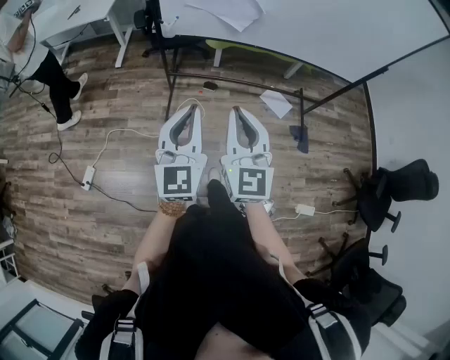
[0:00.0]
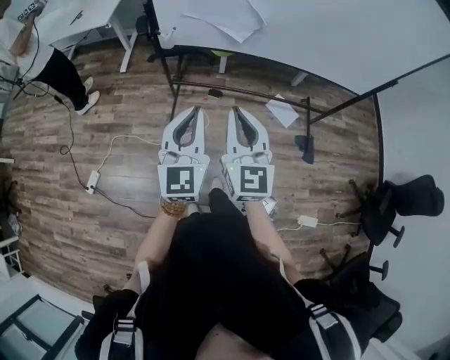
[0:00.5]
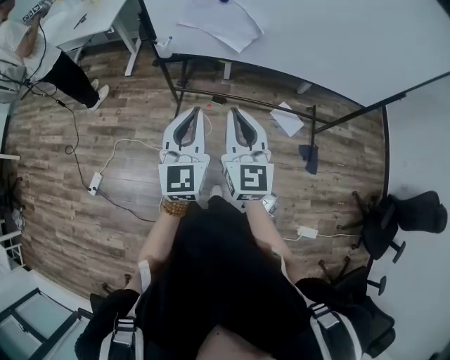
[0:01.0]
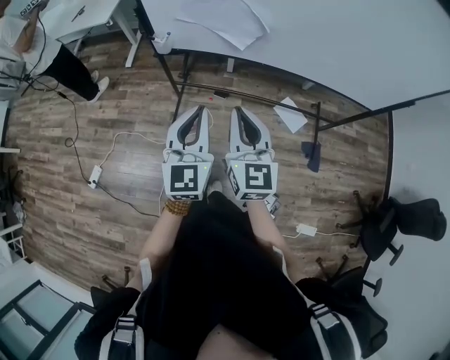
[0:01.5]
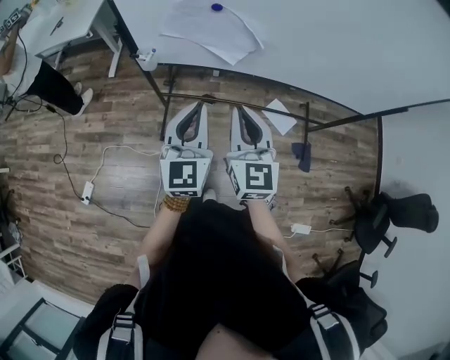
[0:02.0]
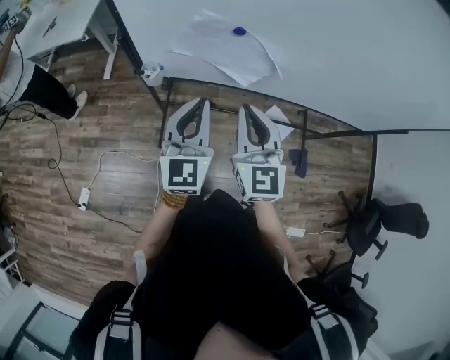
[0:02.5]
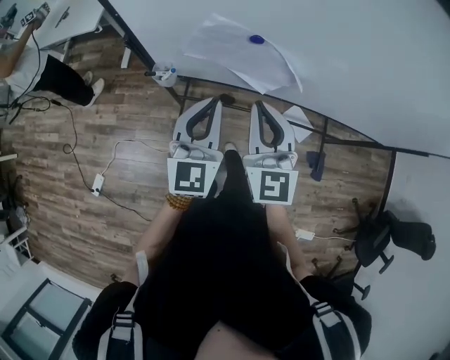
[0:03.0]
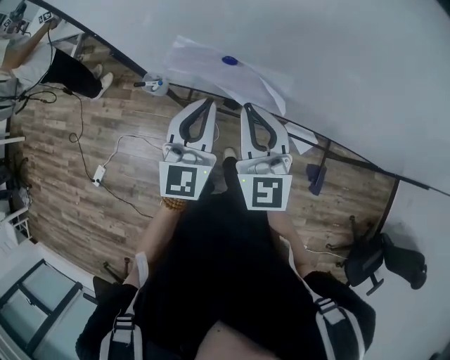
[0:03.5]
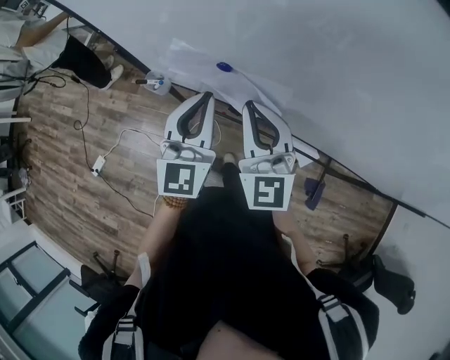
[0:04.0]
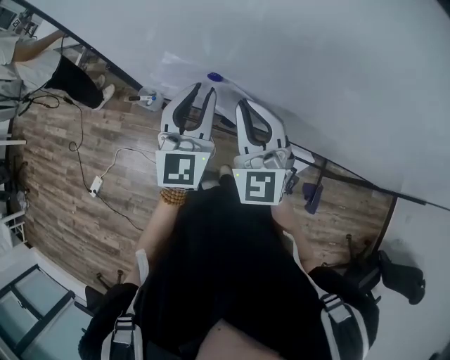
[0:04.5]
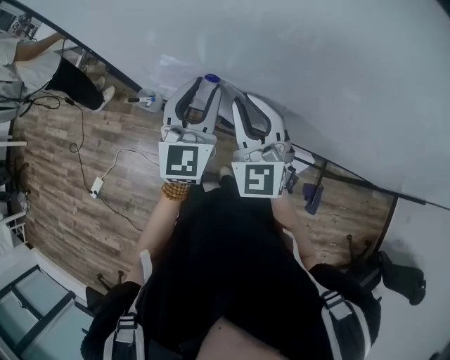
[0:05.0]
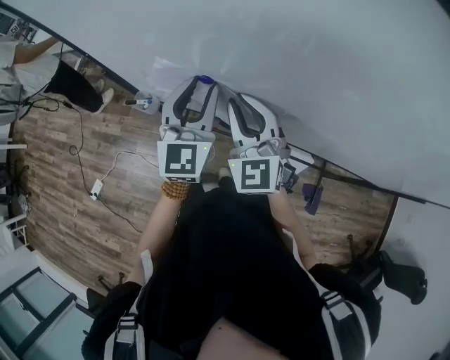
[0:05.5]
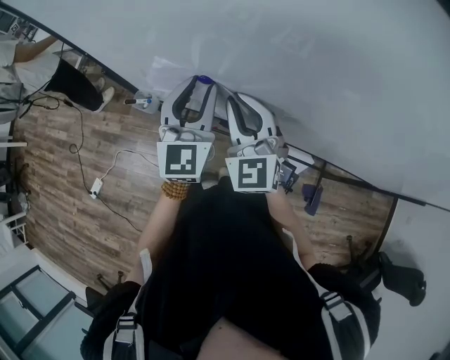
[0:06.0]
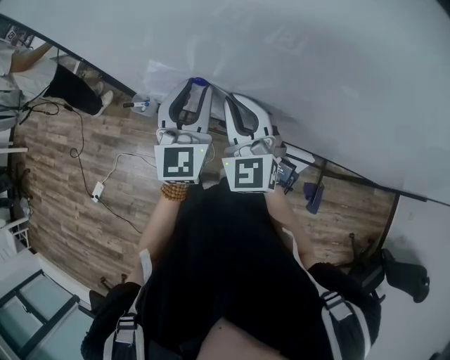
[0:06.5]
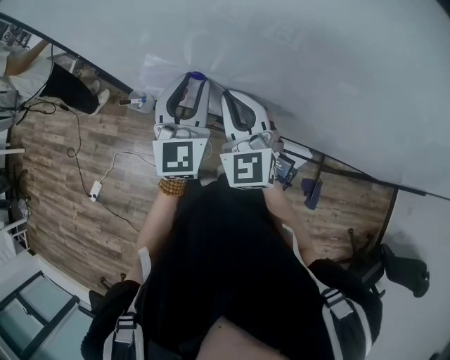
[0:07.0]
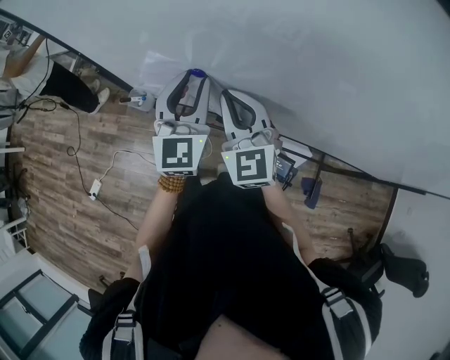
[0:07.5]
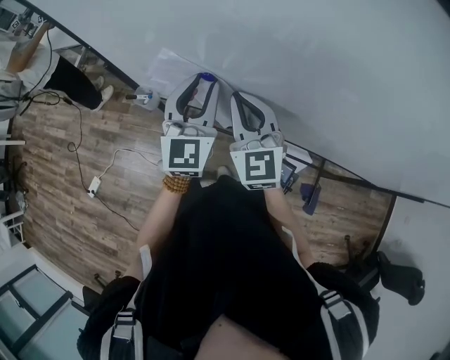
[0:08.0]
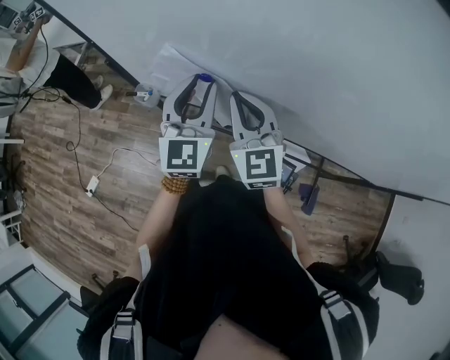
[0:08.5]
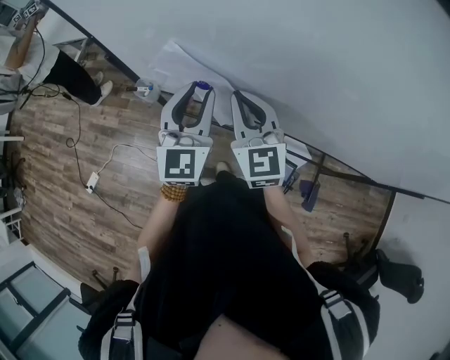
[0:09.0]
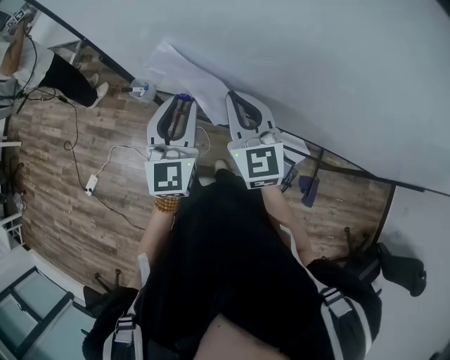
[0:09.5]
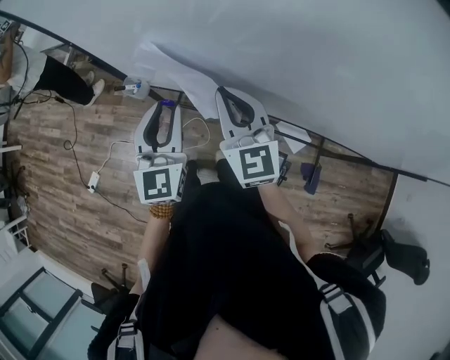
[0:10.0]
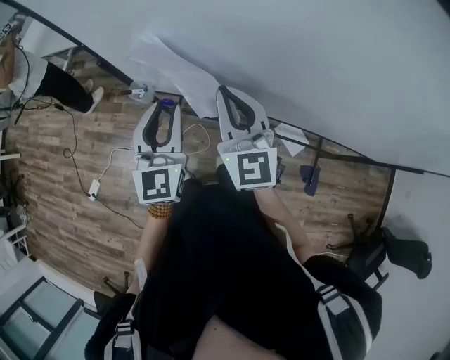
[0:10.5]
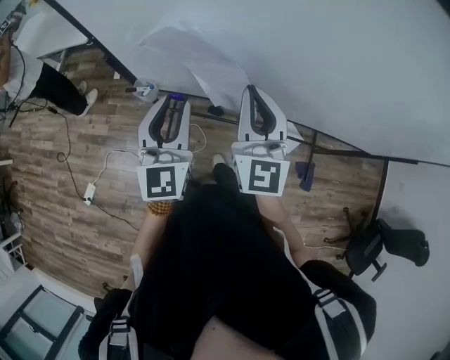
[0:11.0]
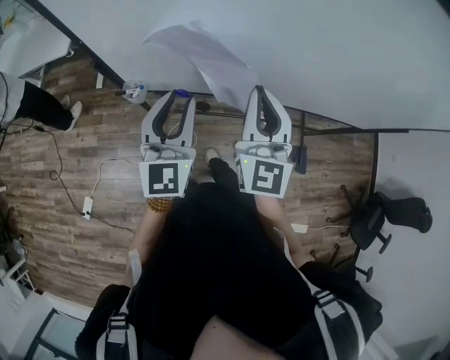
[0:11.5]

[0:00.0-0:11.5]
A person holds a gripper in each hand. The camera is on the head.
0:00.0 to 0:02.0: Both grippers travel together forward, roughly 25 cm.
0:02.0 to 0:04.0: The grippers both shift forward by approximately 20 cm. The right gripper changes its angle by about 30 degrees.
0:04.0 to 0:06.0: The left gripper moves forward, approximately 5 cm, and opens up.
0:06.0 to 0:07.5: The grippers move only a little.
0:07.5 to 0:09.5: The left gripper moves backward and to the left, roughly 5 cm.
0:09.5 to 0:11.5: The left gripper moves some 5 cm. The right gripper moves upward and backward, roughly 10 cm, and swivels some 30 degrees.

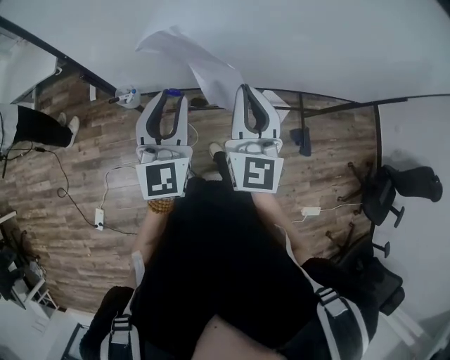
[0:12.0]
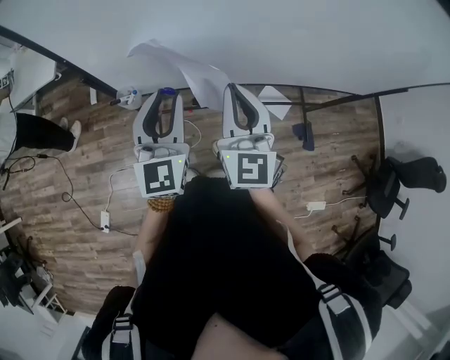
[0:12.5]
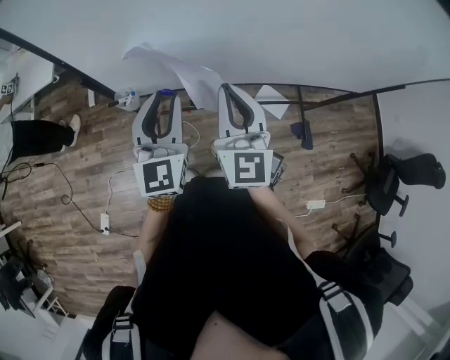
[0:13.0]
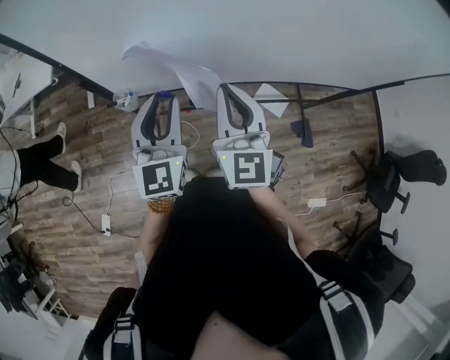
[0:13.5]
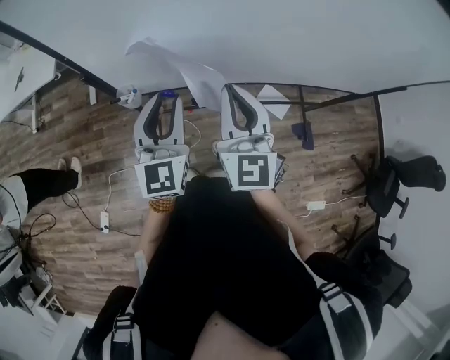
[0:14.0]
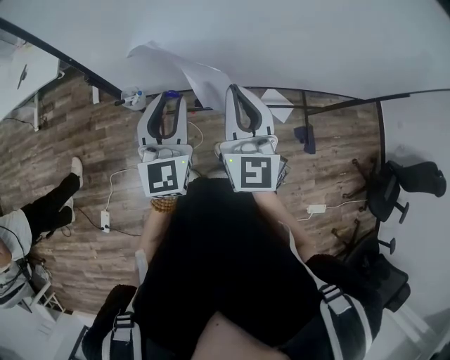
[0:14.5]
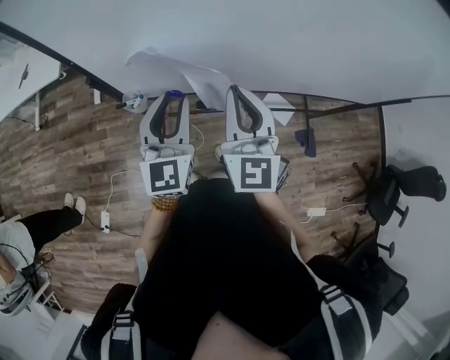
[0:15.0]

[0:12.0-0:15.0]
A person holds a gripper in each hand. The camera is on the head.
0:12.0 to 0:15.0: The grippers stay close to where they were, moving slightly.

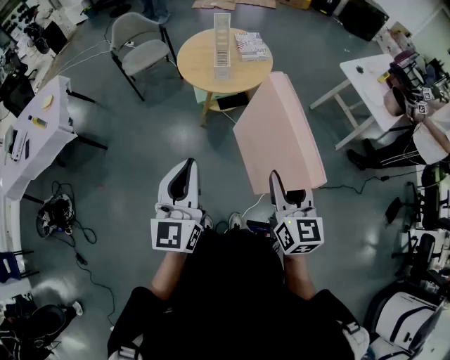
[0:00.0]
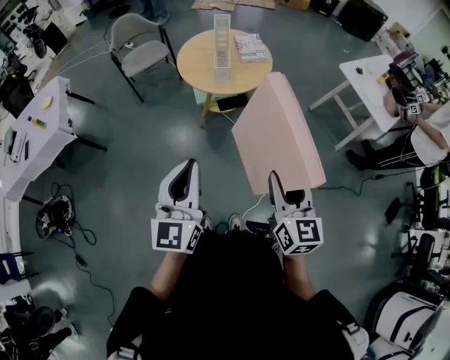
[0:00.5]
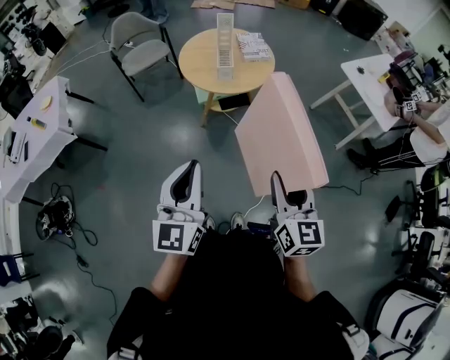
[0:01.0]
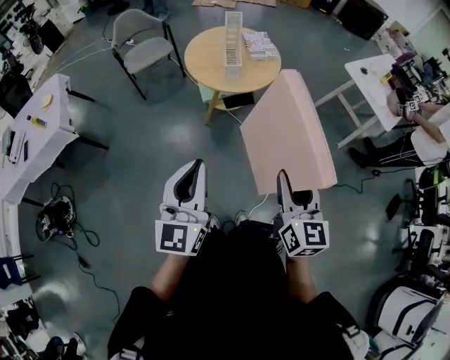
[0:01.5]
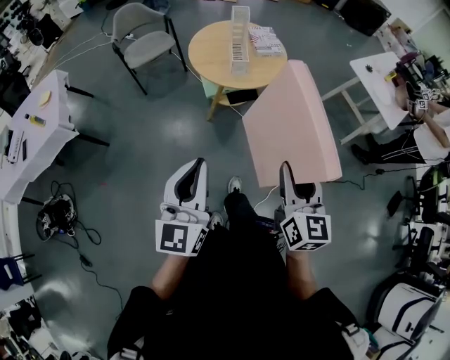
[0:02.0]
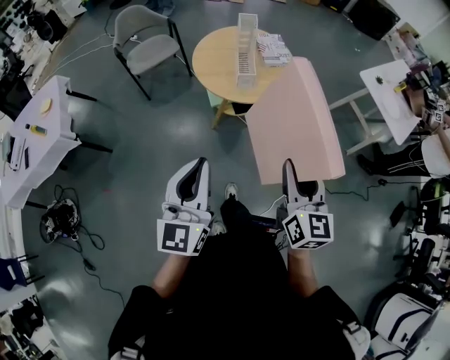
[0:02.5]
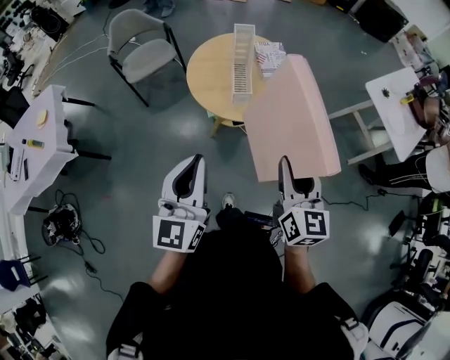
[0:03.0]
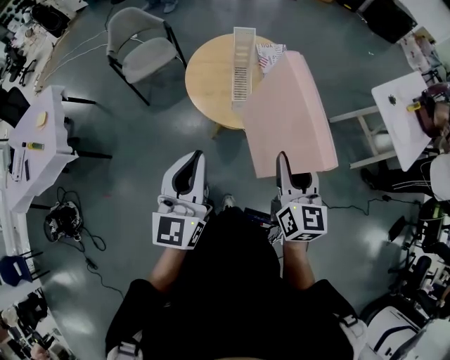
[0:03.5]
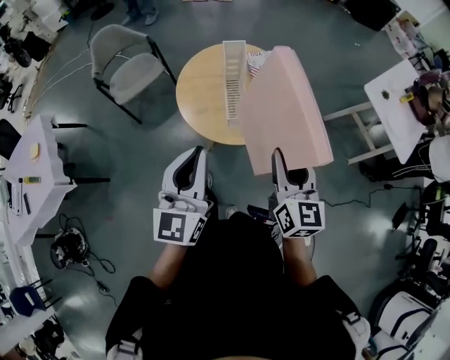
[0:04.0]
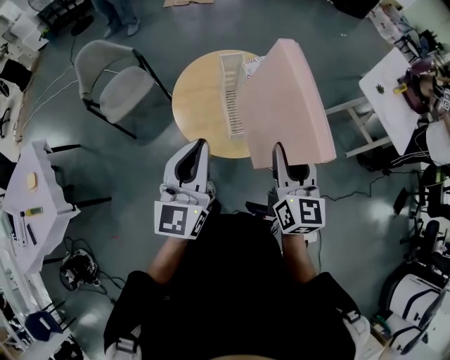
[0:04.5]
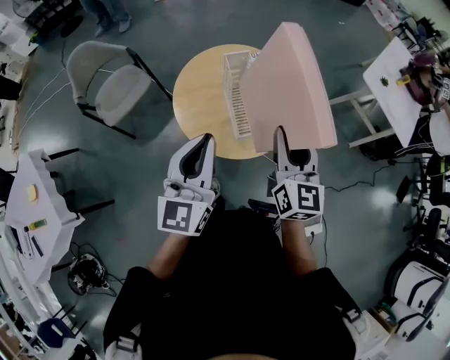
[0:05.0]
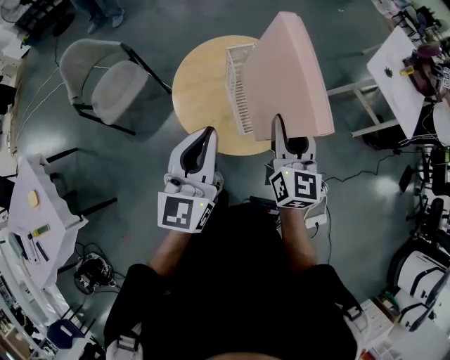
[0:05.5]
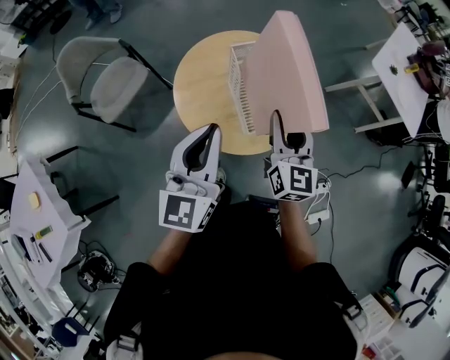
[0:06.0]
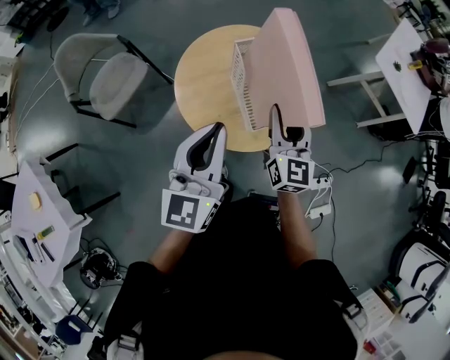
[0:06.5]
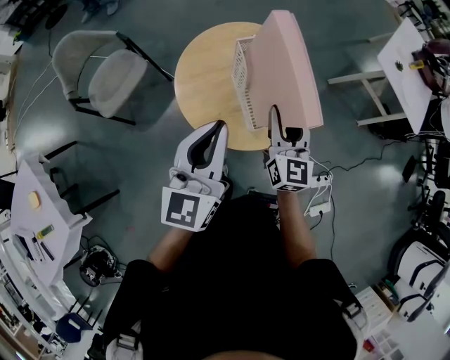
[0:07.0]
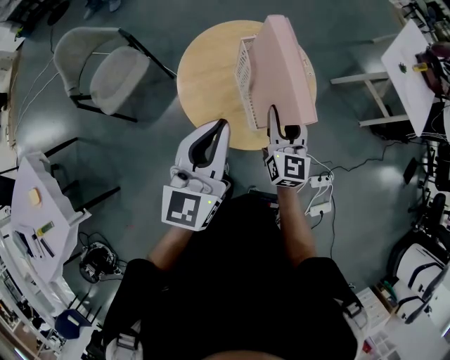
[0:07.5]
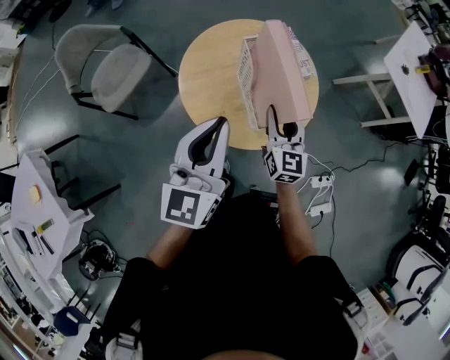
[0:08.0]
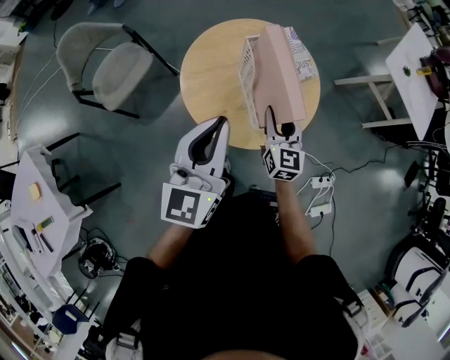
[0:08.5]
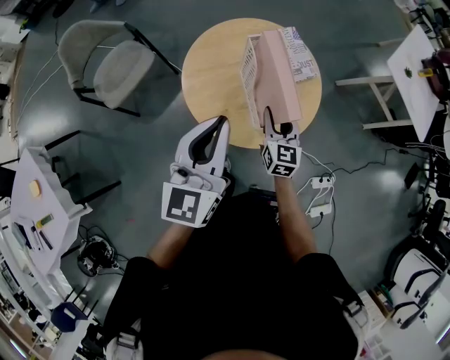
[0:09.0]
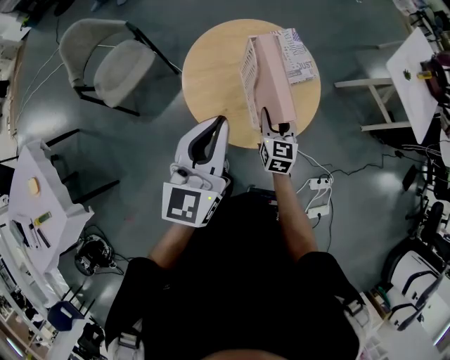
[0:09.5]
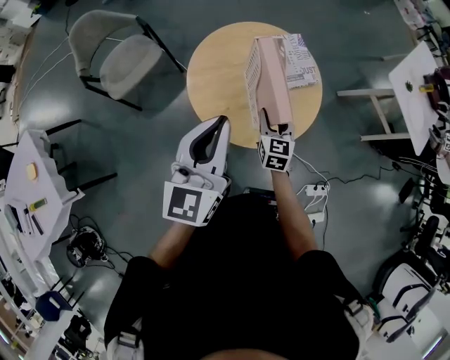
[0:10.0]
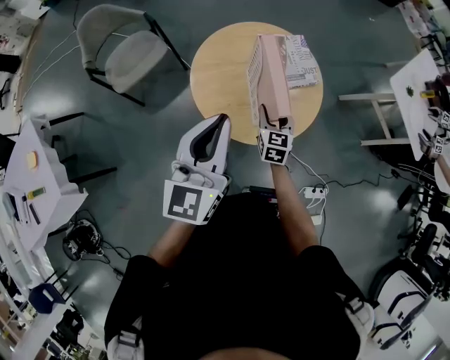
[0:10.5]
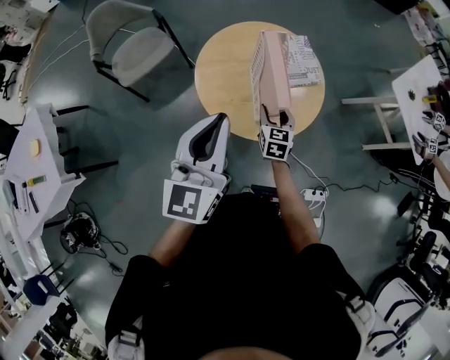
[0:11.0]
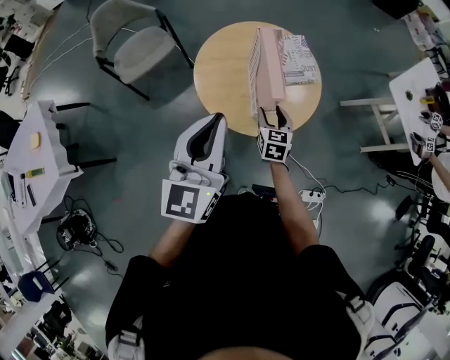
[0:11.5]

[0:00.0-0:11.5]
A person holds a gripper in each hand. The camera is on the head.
0:00.0 to 0:02.0: Both grippers travel together to the left, about 10 cm.
0:02.0 to 0:04.0: The two grippers go about 40 cm forward.
0:04.0 to 0:06.0: Both grippers move forward and to the left, approximately 20 cm.
0:06.0 to 0:07.5: The right gripper goes roughly 10 cm downward.
0:07.5 to 0:09.5: The right gripper moves downward, about 10 cm.
0:09.5 to 0:11.5: The right gripper is displaced backward by roughly 5 cm. The left gripper travels backward by about 10 cm.

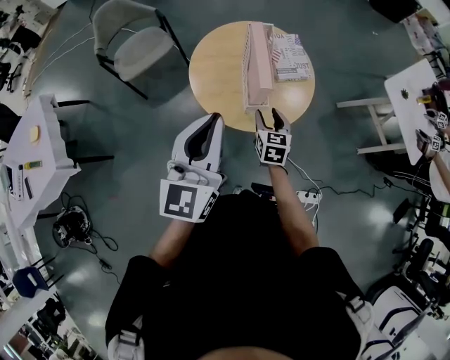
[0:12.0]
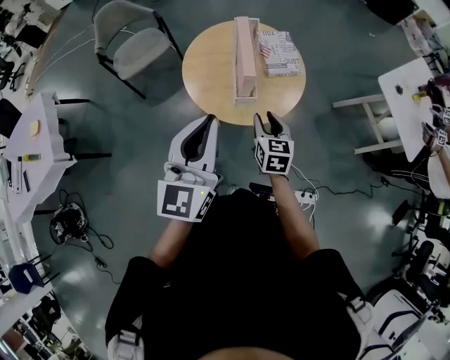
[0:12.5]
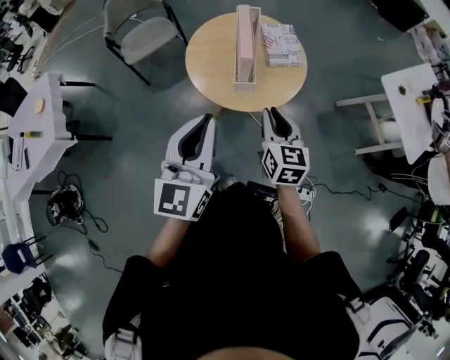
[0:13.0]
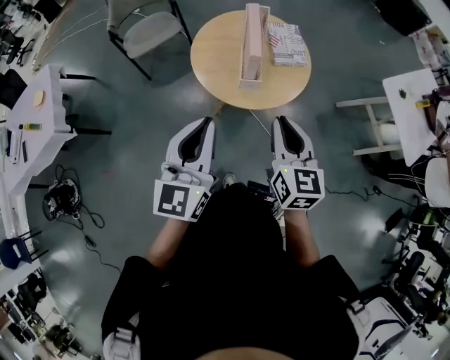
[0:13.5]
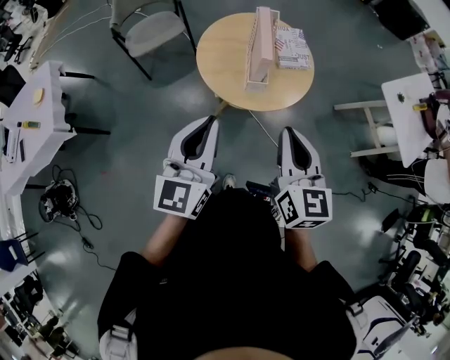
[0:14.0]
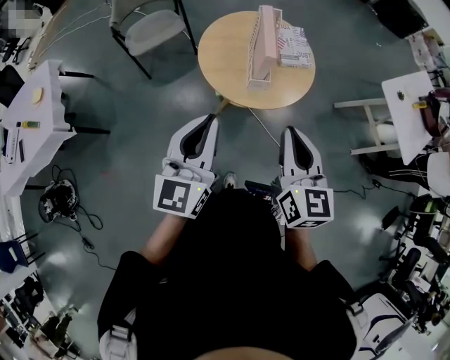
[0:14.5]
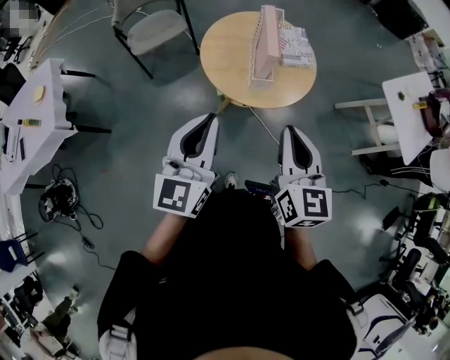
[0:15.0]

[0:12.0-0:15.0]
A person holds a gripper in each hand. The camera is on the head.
0:12.0 to 0:13.5: The left gripper is displaced backward by approximately 15 cm; the right gripper heads upward and backward, covering some 30 cm, and closes its fingers.
0:13.5 to 0:15.0: The right gripper shifts roughly 5 cm to the left and upward; the left gripper goes about 5 cm to the left.
